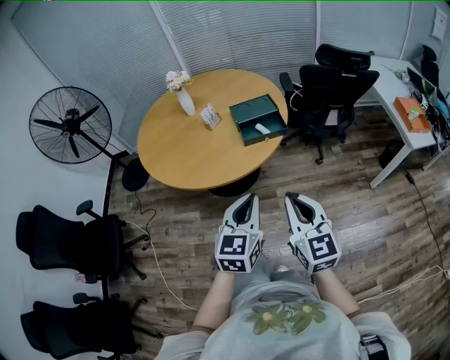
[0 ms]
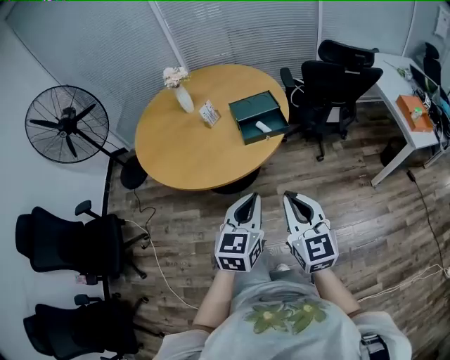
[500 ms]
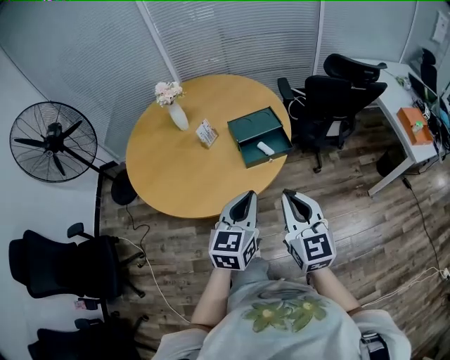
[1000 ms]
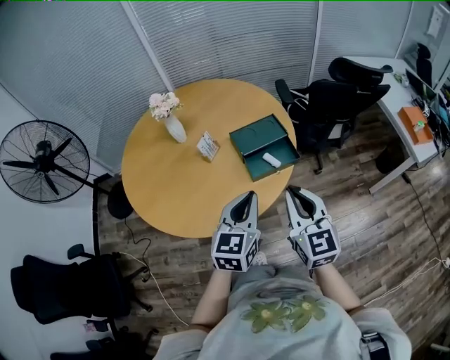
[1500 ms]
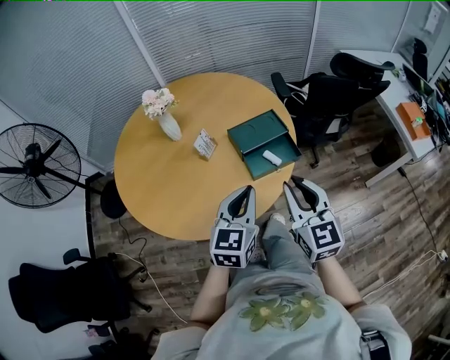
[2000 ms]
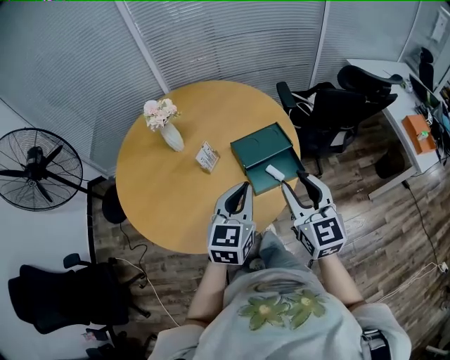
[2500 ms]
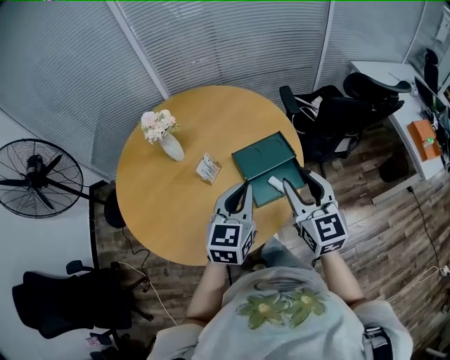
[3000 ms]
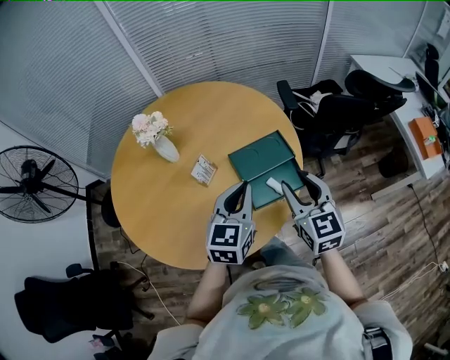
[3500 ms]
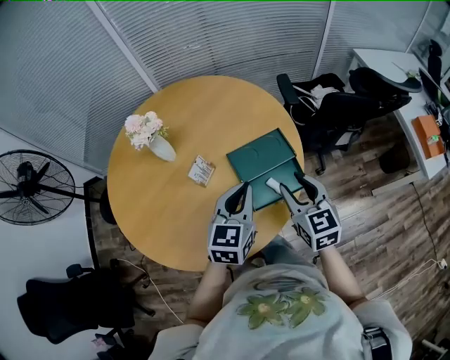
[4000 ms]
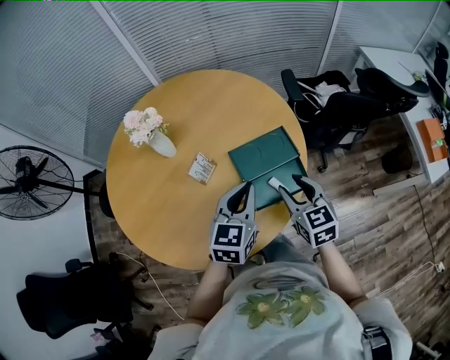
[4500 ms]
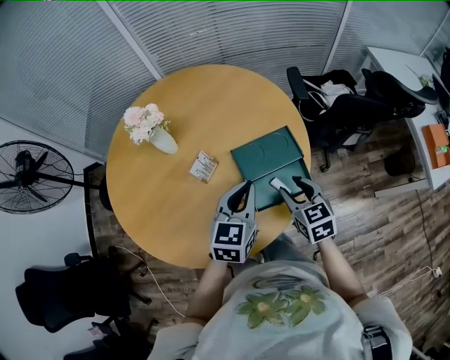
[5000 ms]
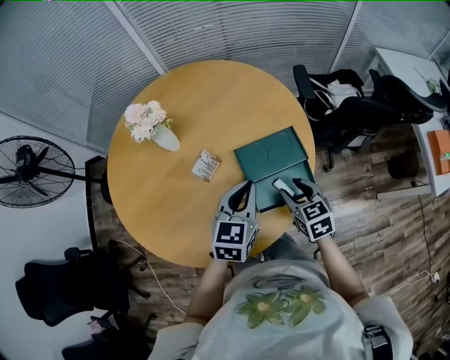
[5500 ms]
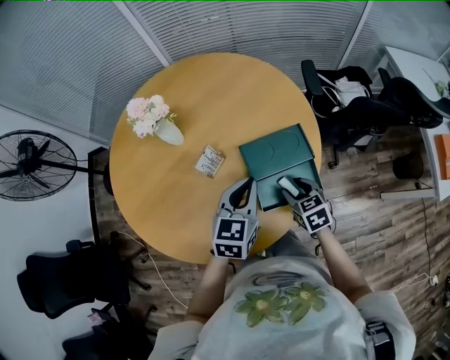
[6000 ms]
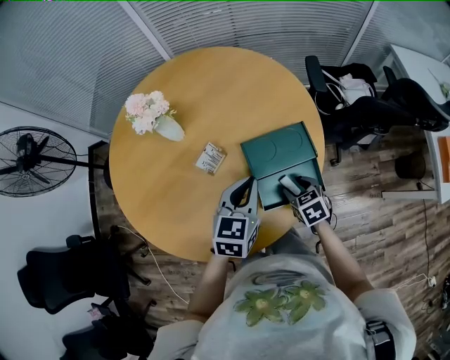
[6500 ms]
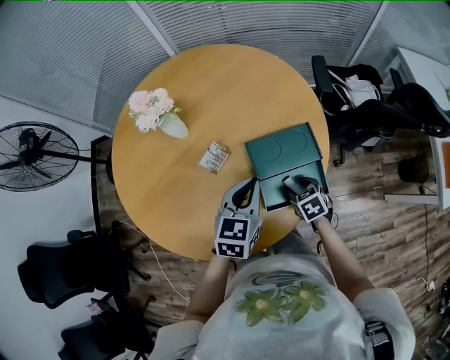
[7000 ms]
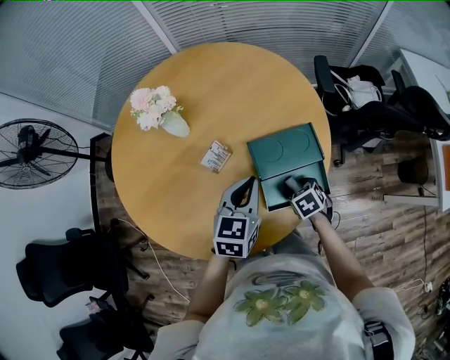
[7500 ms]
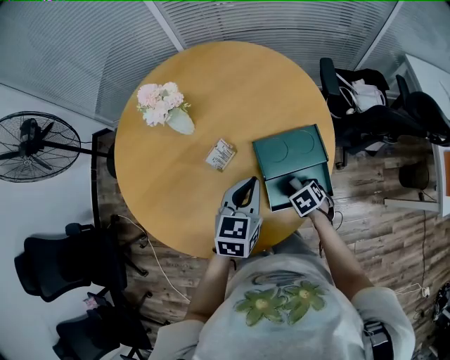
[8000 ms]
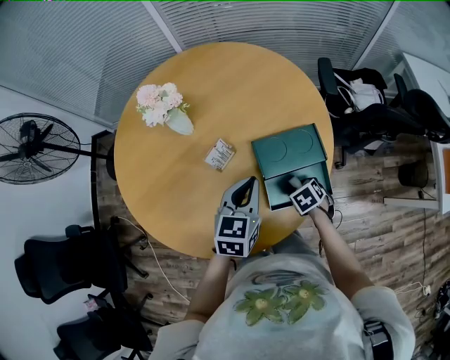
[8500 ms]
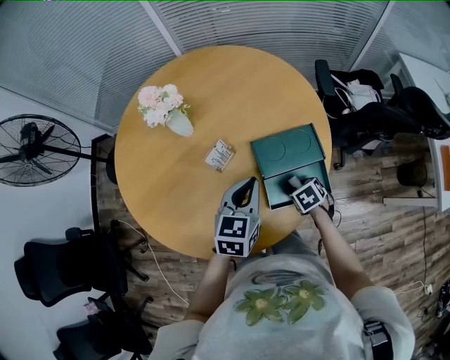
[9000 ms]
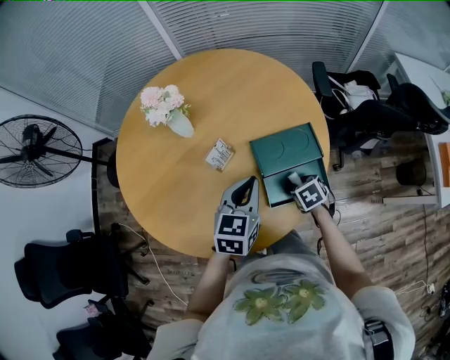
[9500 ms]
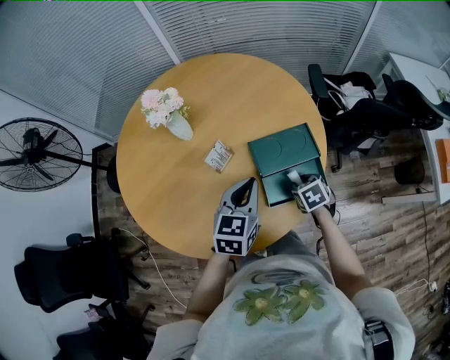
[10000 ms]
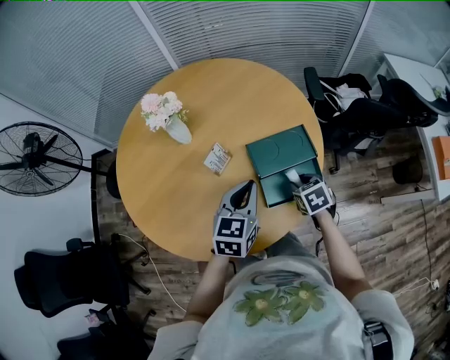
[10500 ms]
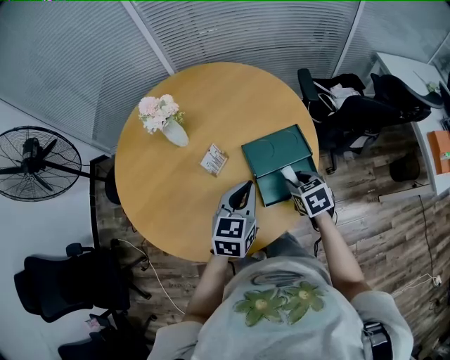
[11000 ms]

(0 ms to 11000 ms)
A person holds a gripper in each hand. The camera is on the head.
0 ms - 2000 ms: The two grippers go roughly 30 cm forward.
2000 ms - 3500 ms: The two grippers go about 15 cm forward. The right gripper opens its fingers.
3500 ms - 5500 ms: The left gripper travels downward and forward by about 10 cm, while the right gripper moves downward, approximately 15 cm, and rotates roughly 30 degrees.
5500 ms - 7500 ms: The right gripper shifts roughly 15 cm downward, and changes its angle by roughly 30 degrees.
7500 ms - 9000 ms: There are only small adjustments of the grippers.
9000 ms - 11000 ms: The right gripper is displaced upward by about 10 cm, and turns by roughly 20 degrees.

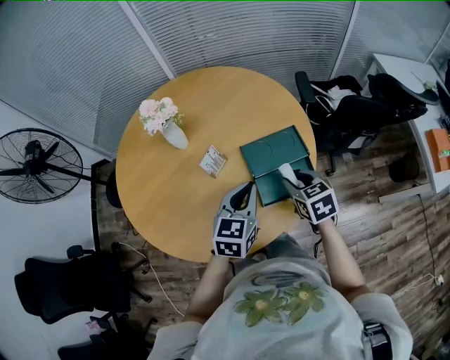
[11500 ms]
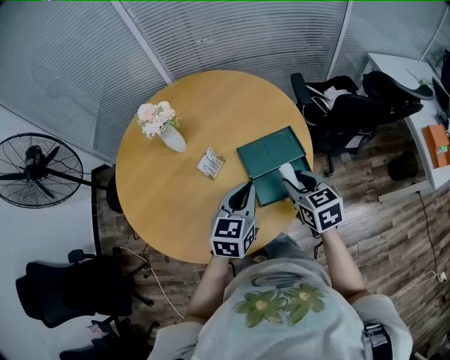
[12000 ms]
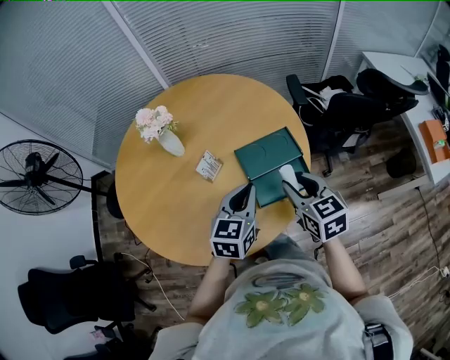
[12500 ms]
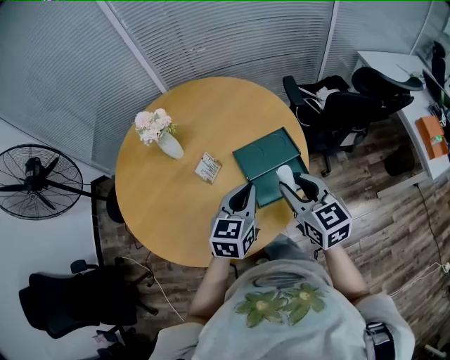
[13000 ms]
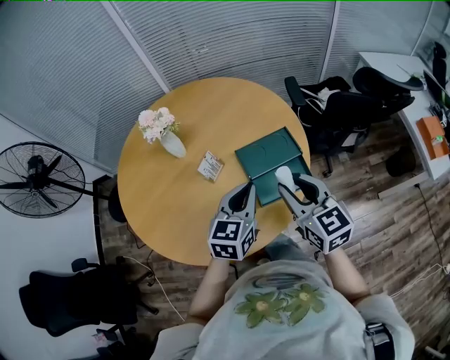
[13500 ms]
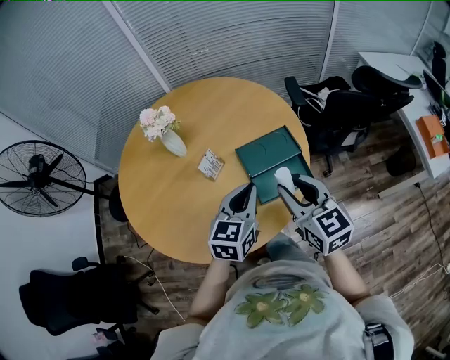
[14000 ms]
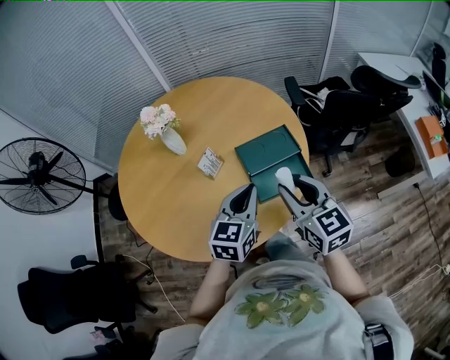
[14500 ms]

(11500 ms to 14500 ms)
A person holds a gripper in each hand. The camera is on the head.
11500 ms - 13000 ms: The right gripper shifts about 10 cm upward, and changes its angle by some 20 degrees.
13000 ms - 14500 ms: The grippers move only a little.

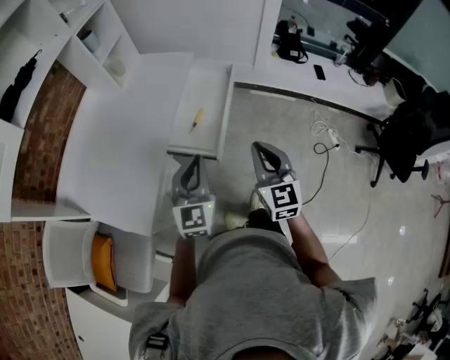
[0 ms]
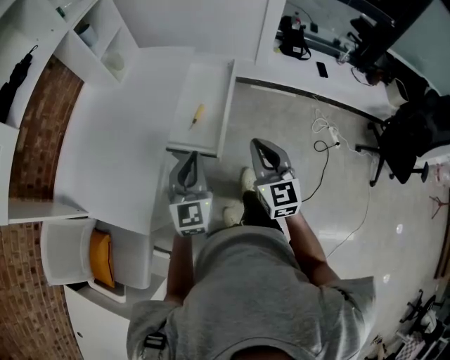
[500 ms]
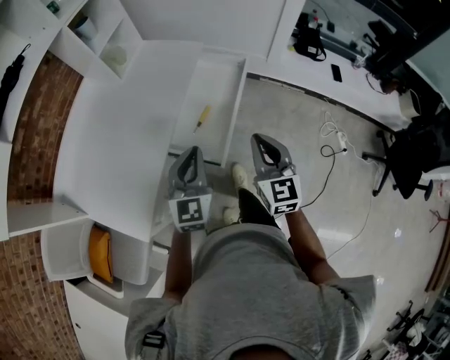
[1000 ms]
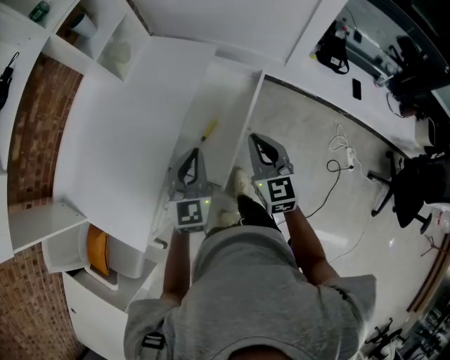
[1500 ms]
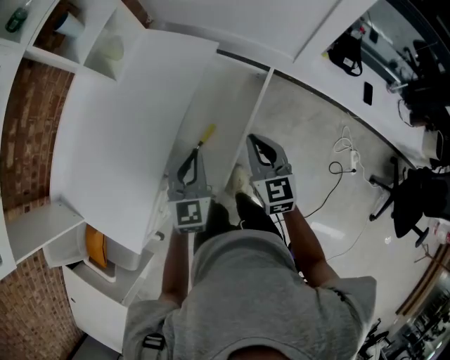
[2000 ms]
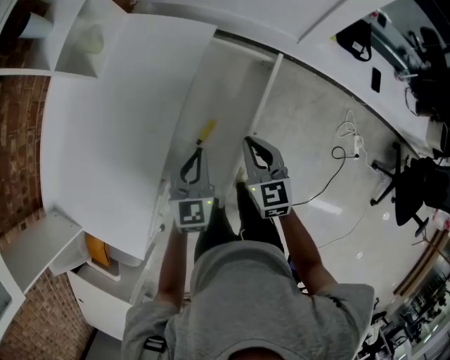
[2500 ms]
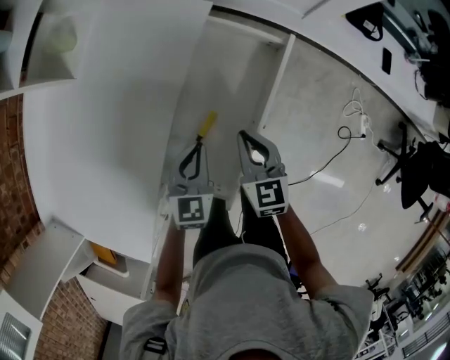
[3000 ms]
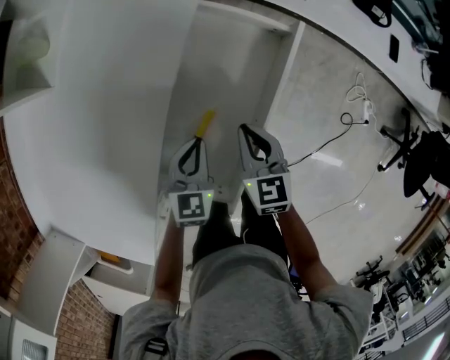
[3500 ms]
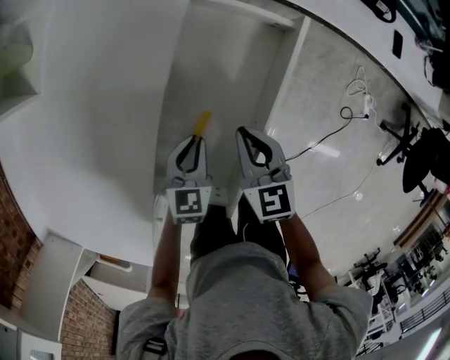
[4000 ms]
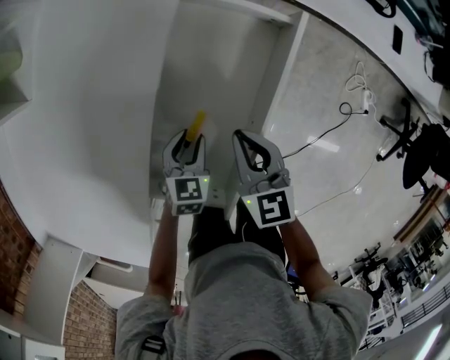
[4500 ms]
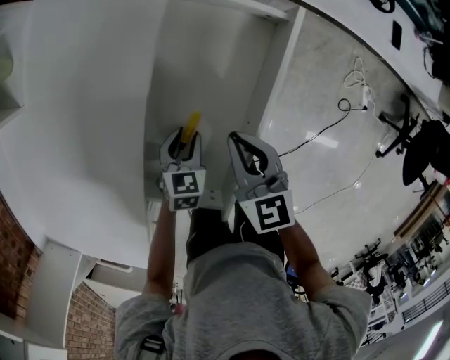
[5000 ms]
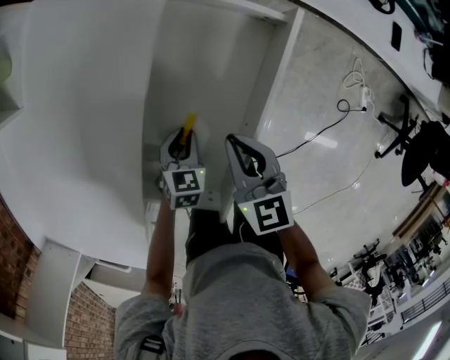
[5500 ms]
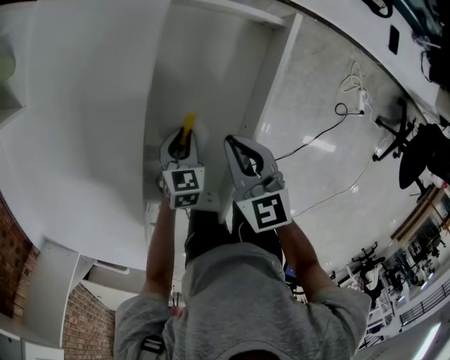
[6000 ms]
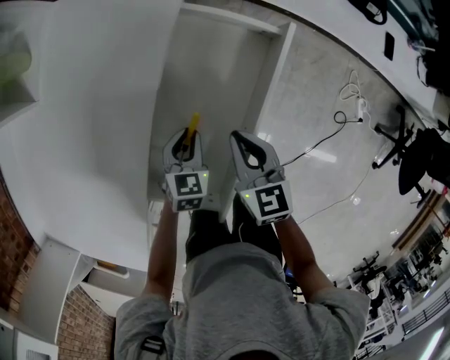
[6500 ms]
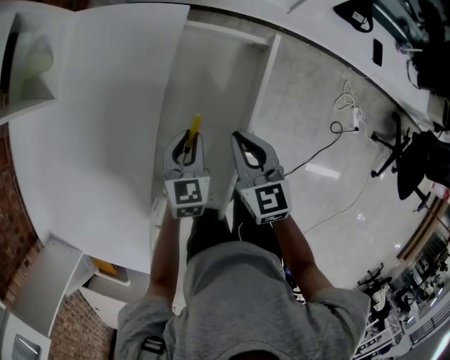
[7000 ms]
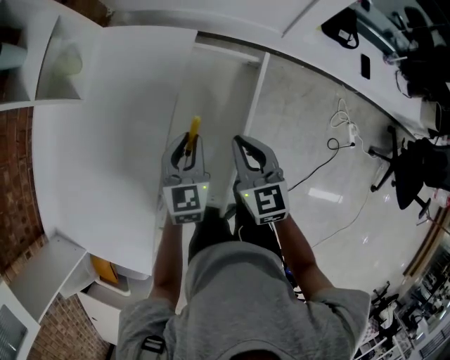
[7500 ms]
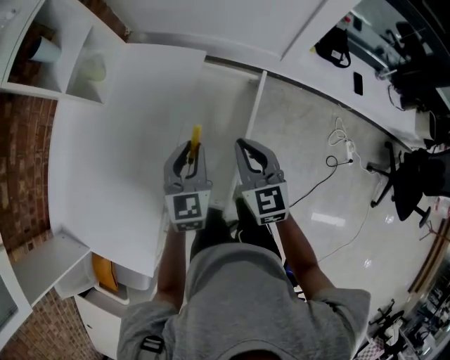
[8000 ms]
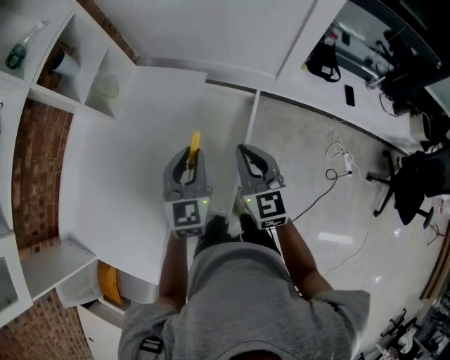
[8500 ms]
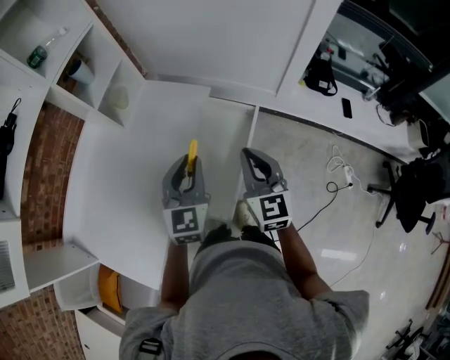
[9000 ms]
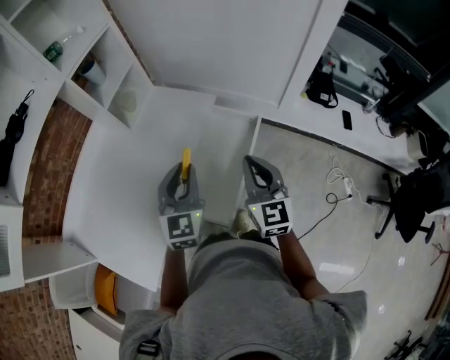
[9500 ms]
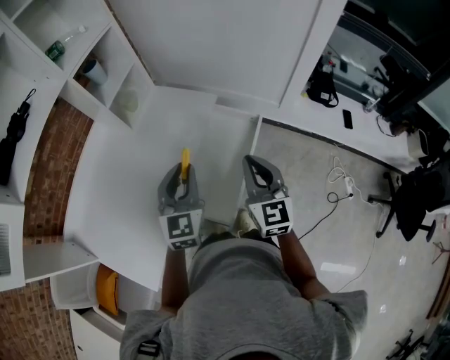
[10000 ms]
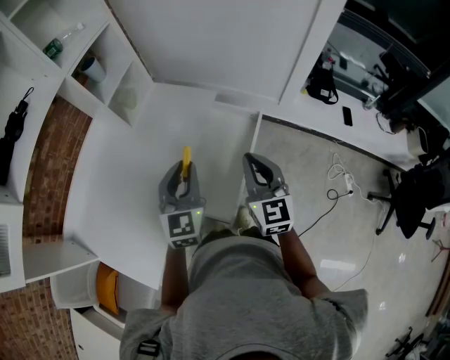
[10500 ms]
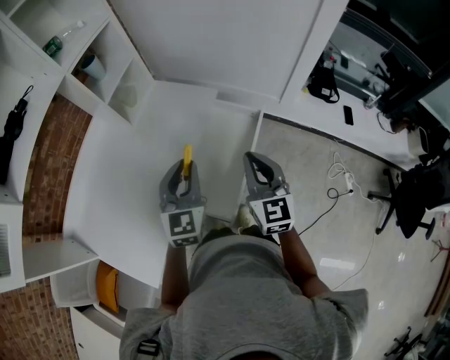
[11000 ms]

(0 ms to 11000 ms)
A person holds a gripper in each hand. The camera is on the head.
0 ms - 2000 ms: The grippers both shift forward by roughly 30 cm. The right gripper rotates approximately 20 degrees.
2000 ms - 3500 ms: Both grippers travel together downward, some 20 cm. The left gripper changes its angle by roughly 20 degrees.
3500 ms - 5500 ms: The left gripper moves downward, approximately 15 cm.
5500 ms - 7500 ms: The right gripper travels upward by roughly 15 cm. The left gripper goes roughly 25 cm upward, and turns by roughly 30 degrees.
7500 ms - 9000 ms: Both grippers travel together upward, about 20 cm.
9000 ms - 11000 ms: The left gripper changes place by approximately 5 cm.

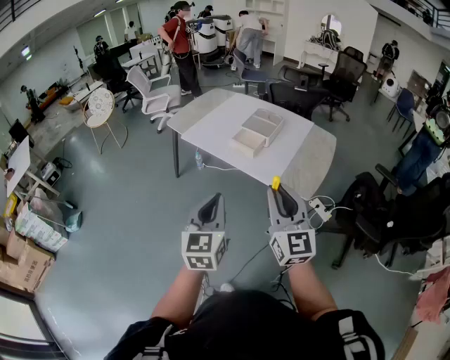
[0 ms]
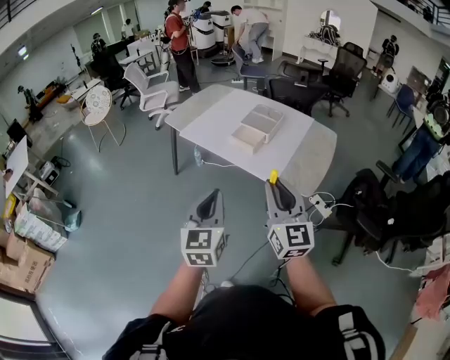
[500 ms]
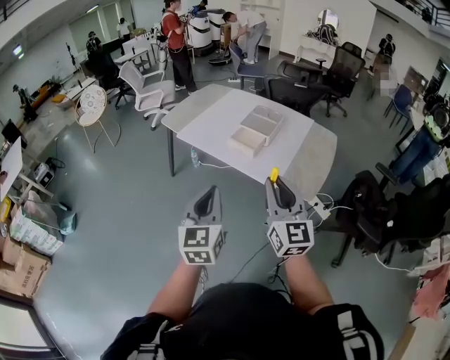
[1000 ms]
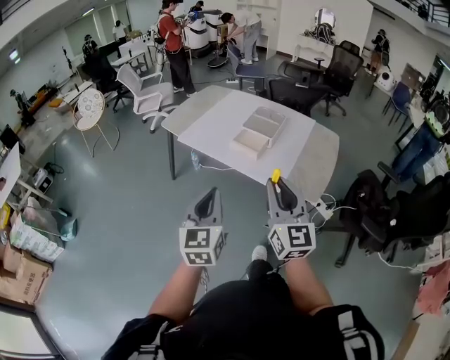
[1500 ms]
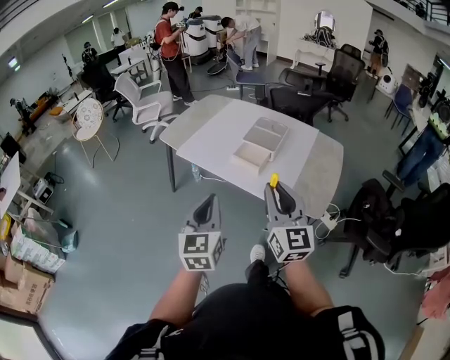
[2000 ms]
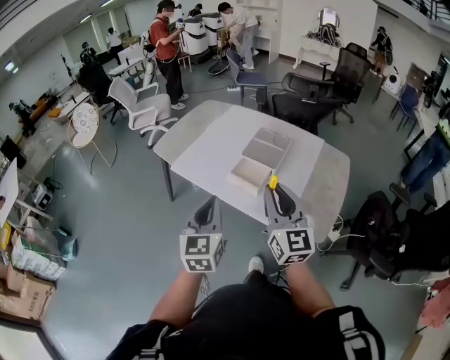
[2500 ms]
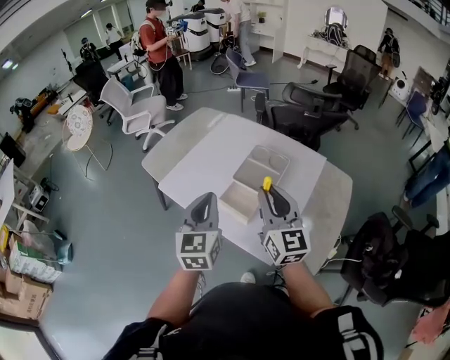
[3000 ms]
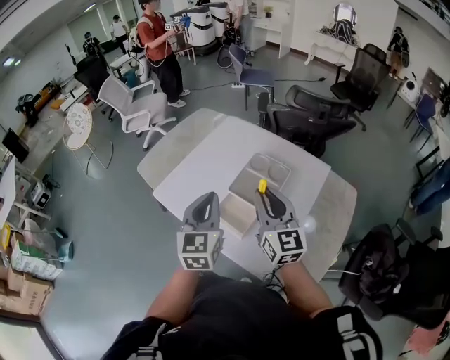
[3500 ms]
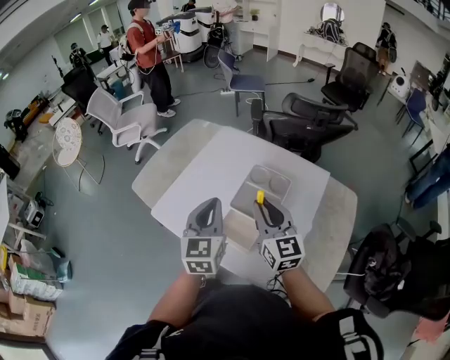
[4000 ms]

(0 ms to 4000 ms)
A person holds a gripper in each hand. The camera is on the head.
0 ms - 2000 ms: Both grippers move forward, roughly 15 cm.
2000 ms - 4000 ms: Both grippers are carried forward, some 40 cm.
